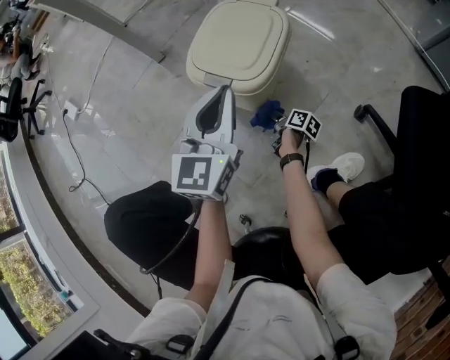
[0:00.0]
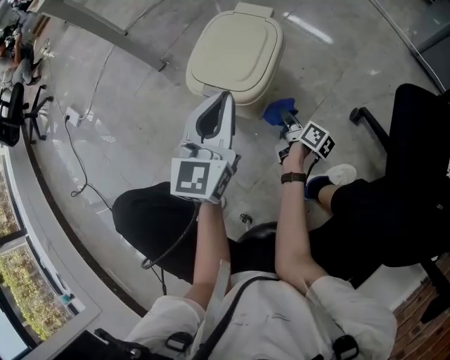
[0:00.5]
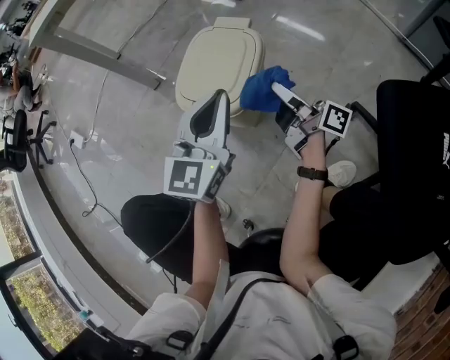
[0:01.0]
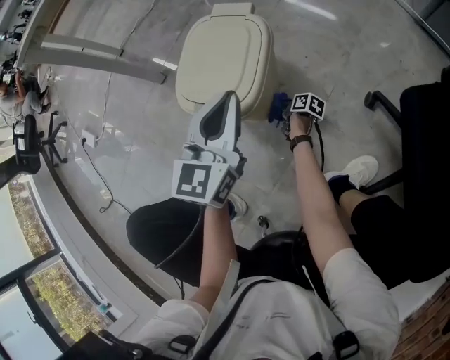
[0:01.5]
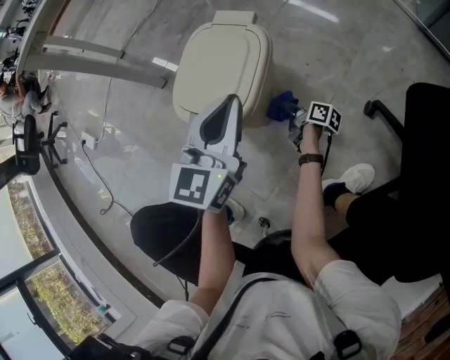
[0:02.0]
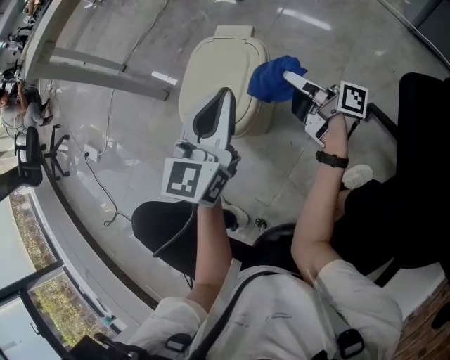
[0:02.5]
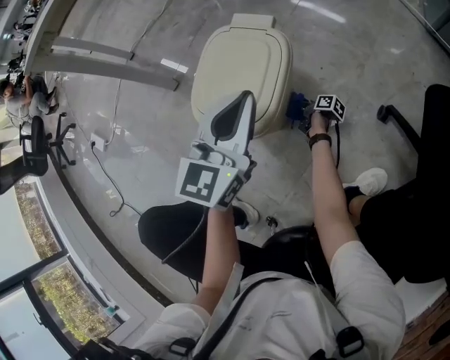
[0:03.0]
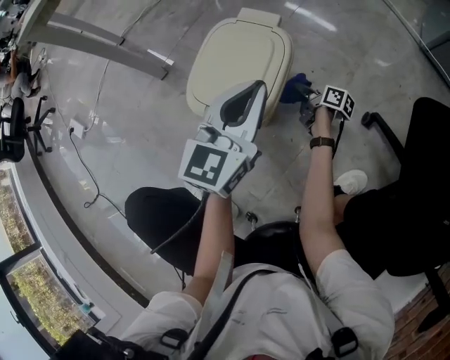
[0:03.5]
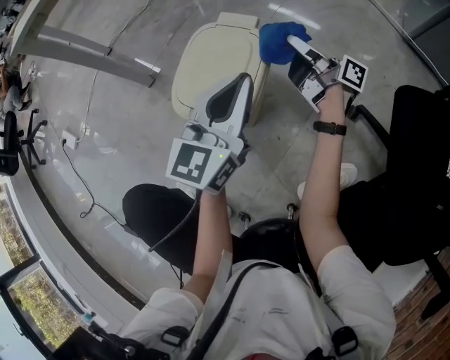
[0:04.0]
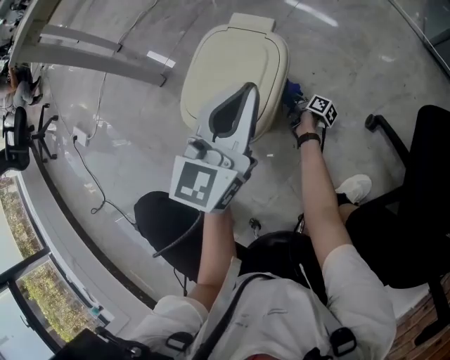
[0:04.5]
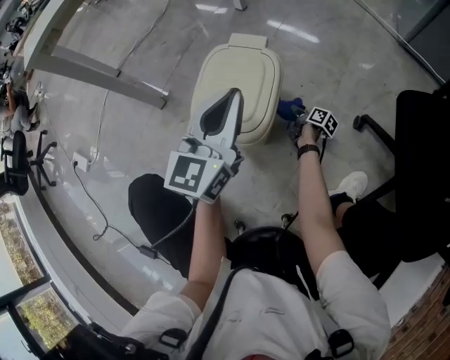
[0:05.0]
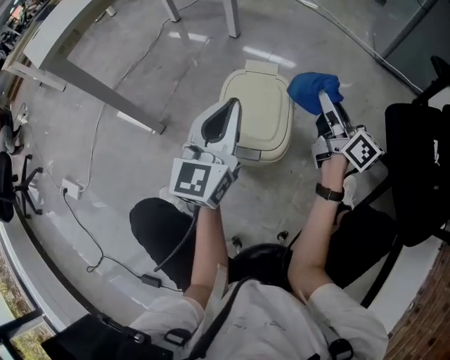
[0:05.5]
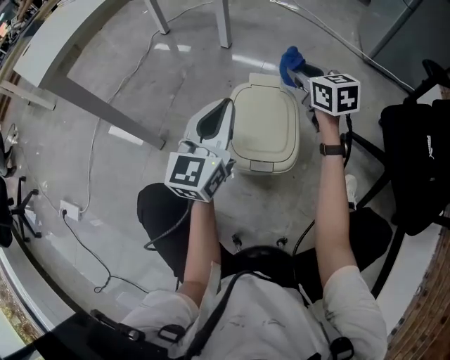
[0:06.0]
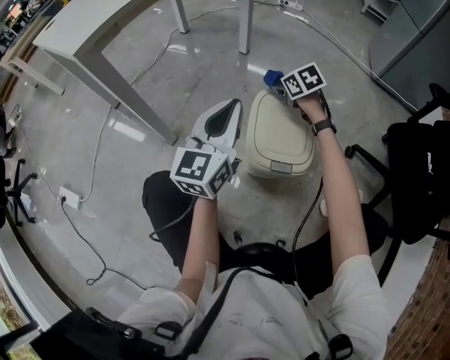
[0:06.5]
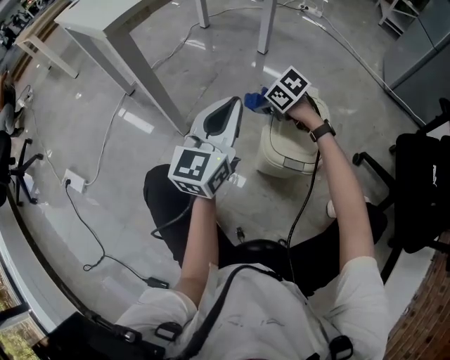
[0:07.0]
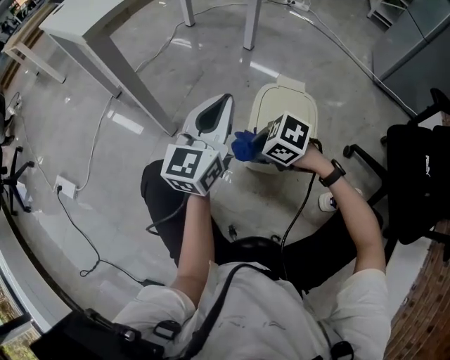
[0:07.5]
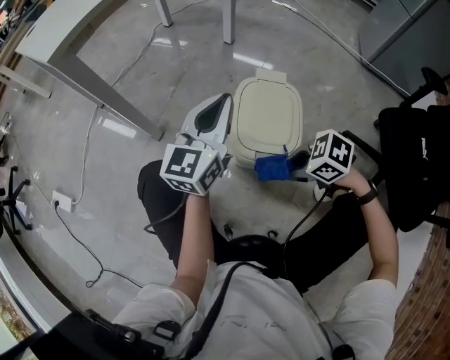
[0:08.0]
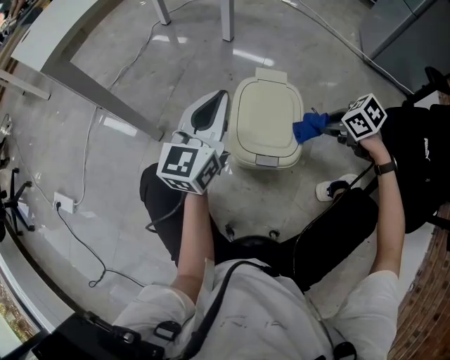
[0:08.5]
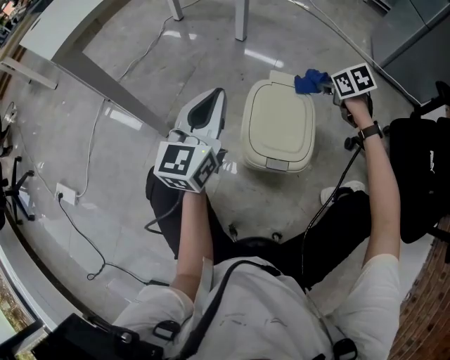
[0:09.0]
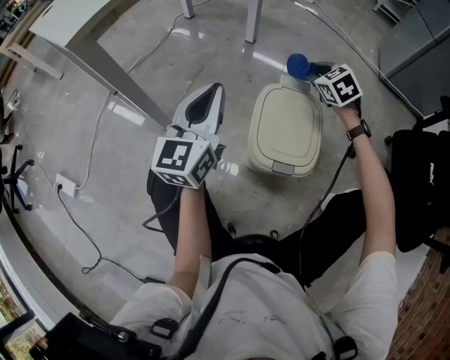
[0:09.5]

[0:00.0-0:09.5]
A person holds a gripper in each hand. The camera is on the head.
0:00.0 to 0:02.0: The left gripper heads to the right, covering some 5 cm. Meanwhile the right gripper goes up and down, approximately 40 cm each way, reversing 2 times.
0:02.0 to 0:04.0: The right gripper goes up and down, some 40 cm each way, reversing 2 times, and tilts its fingers about 40 degrees upward.
0:04.0 to 0:05.5: The left gripper moves to the left, some 10 cm. The right gripper moves backward, some 10 cm, goes downward and returns, roughly 35 cm each way, and rotates approximately 50 degrees.
0:05.5 to 0:07.5: The right gripper ends up some 35 cm from where it was, and tilts its fingers some 60 degrees downward. The left gripper ends up some 15 cm from where it was.
0:07.5 to 0:09.5: The right gripper shifts by some 35 cm, and turns by about 50 degrees.

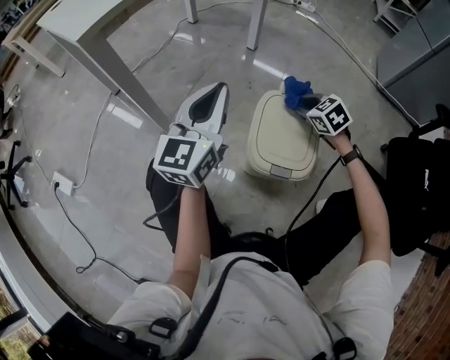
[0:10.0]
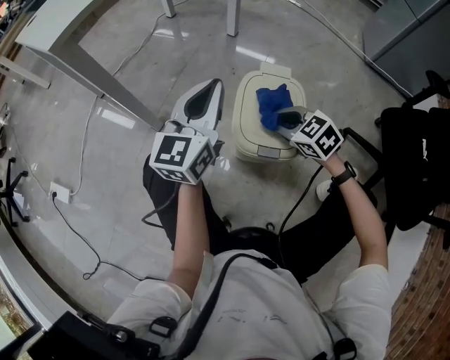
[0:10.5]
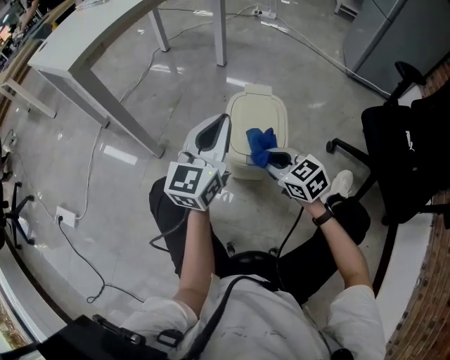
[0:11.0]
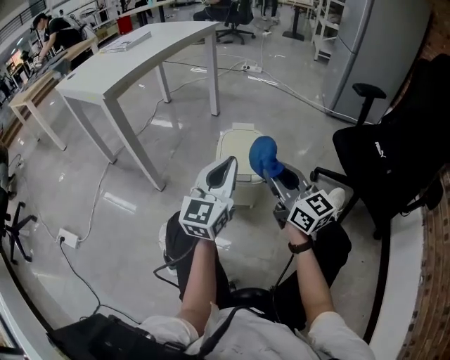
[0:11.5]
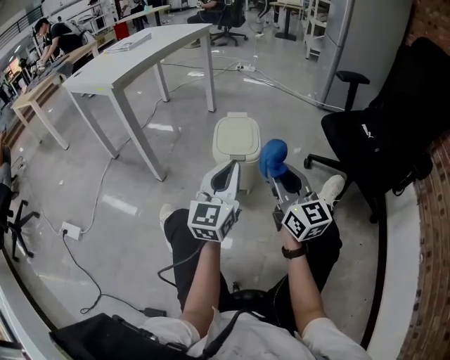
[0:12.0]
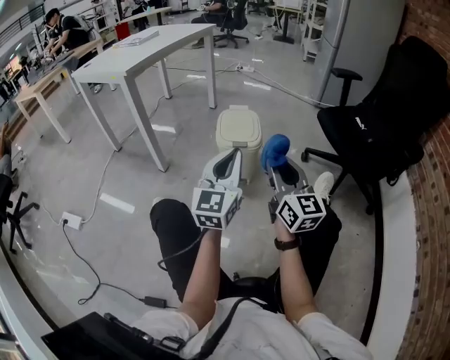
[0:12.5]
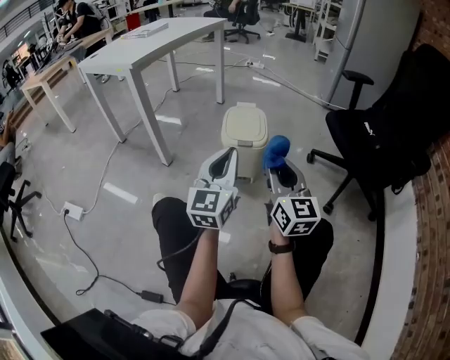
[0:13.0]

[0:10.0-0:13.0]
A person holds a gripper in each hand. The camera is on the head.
0:10.0 to 0:11.5: The right gripper shifts some 35 cm backward and upward, and angles its fingers upward, by about 60 degrees; the left gripper is displaced backward and to the right by about 25 cm.
0:11.5 to 0:13.0: The two grippers go some 15 cm backward. The right gripper turns by some 20 degrees.

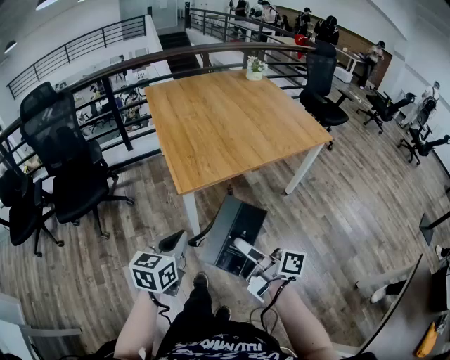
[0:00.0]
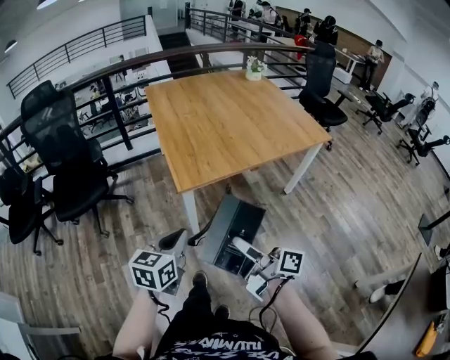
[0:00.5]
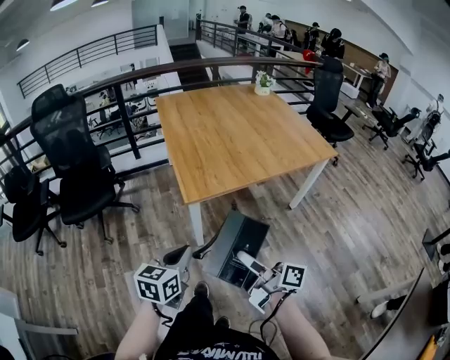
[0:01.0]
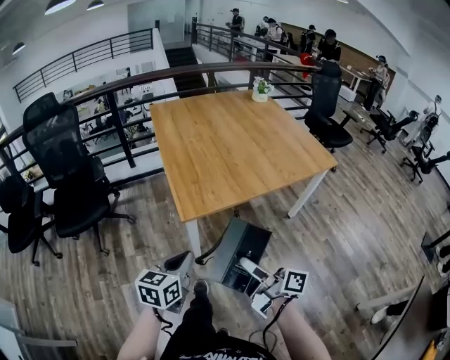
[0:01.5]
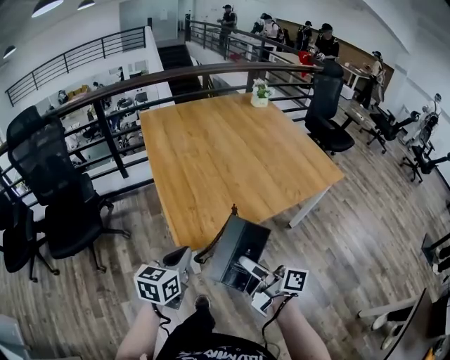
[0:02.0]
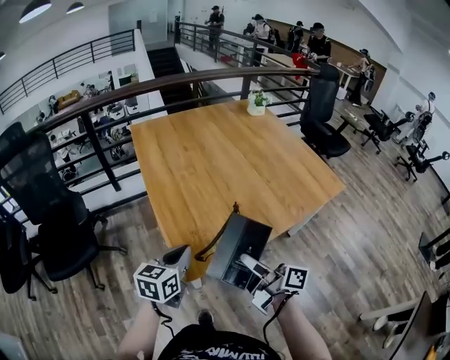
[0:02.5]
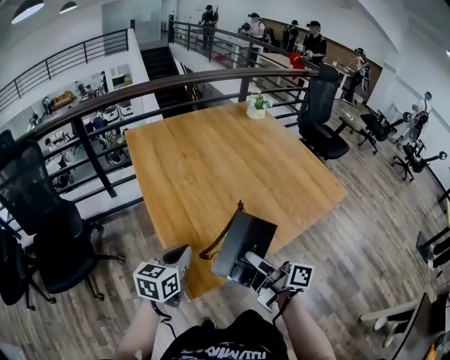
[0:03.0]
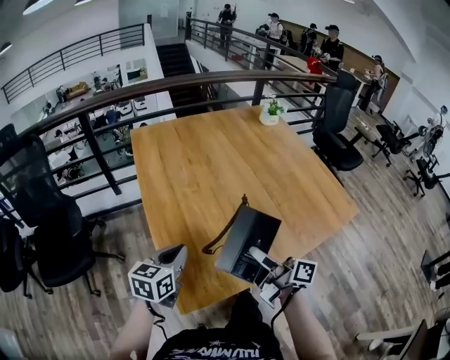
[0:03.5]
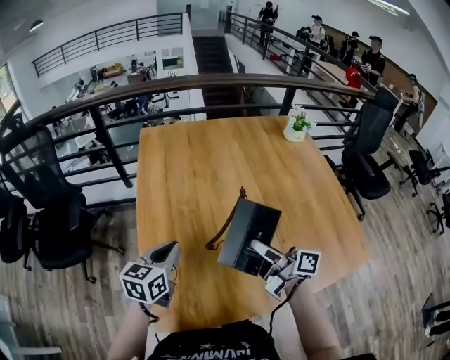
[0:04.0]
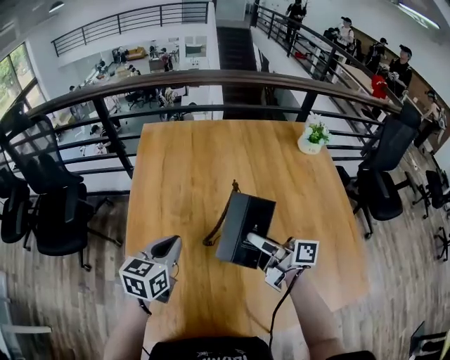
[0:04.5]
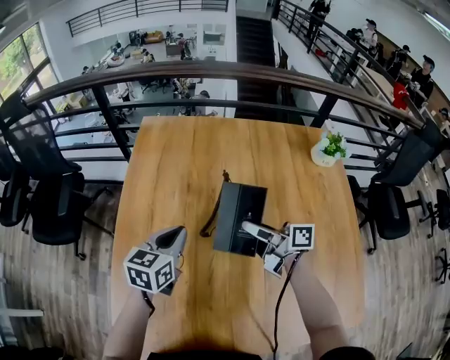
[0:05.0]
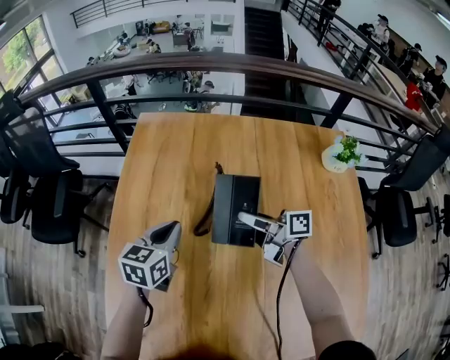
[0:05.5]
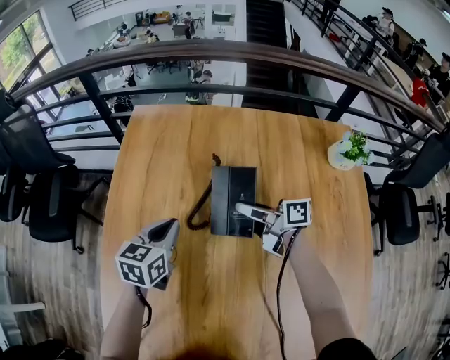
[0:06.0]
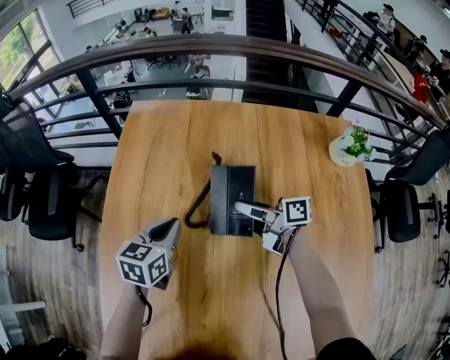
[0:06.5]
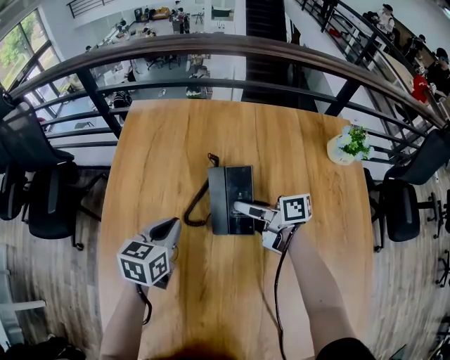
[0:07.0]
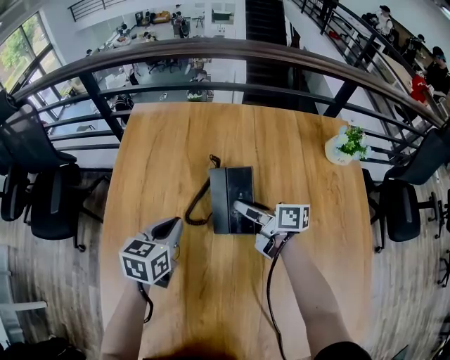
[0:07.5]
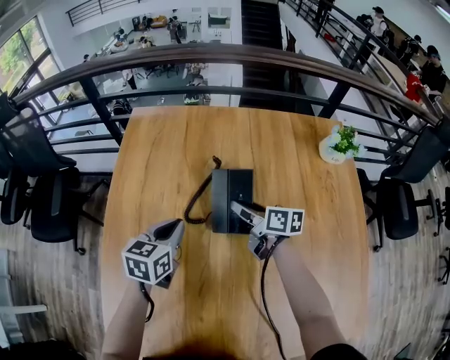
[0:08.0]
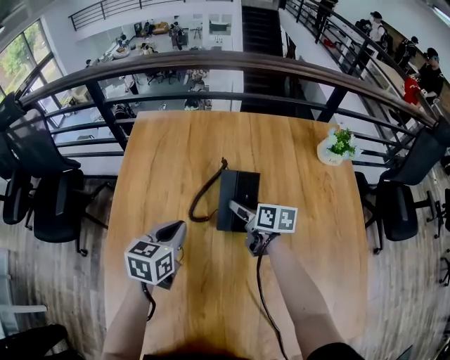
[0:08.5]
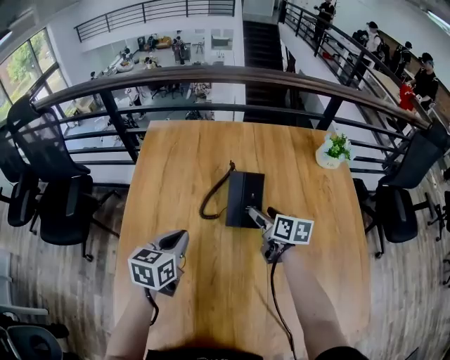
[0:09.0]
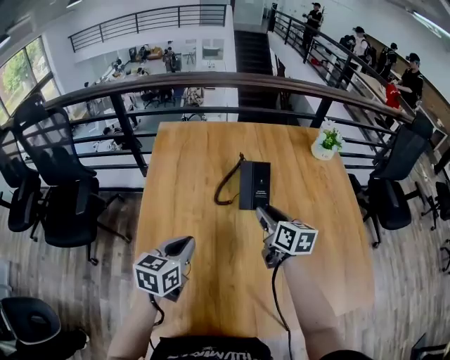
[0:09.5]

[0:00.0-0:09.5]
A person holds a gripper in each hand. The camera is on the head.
0:00.0 to 0:02.0: The two grippers go roughly 20 cm forward.
0:02.0 to 0:04.0: Both grippers move forward, approximately 40 cm.
0:04.0 to 0:05.5: The left gripper heads forward and to the right, covering some 25 cm. The right gripper goes some 30 cm forward, and swivels approximately 30 degrees.
0:05.5 to 0:07.5: The right gripper changes place by approximately 5 cm.
0:07.5 to 0:09.5: The left gripper heads backward, to the left and upward, covering approximately 20 cm, while the right gripper heads backward and upward, covering approximately 20 cm, swivels some 40 degrees, and opens and closes again.

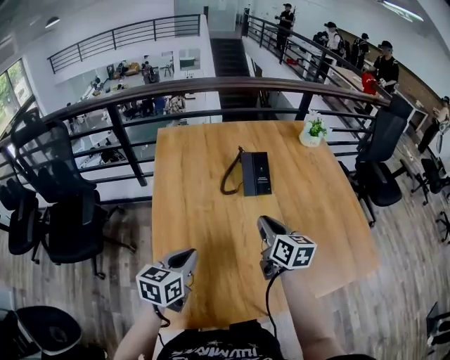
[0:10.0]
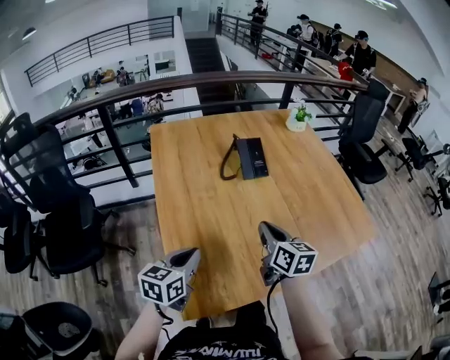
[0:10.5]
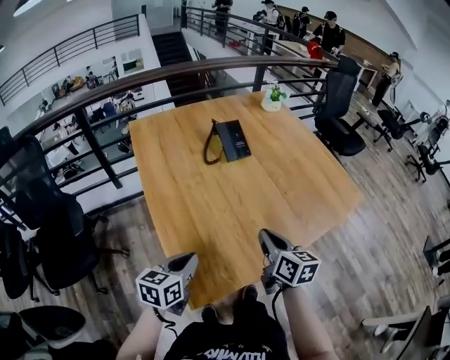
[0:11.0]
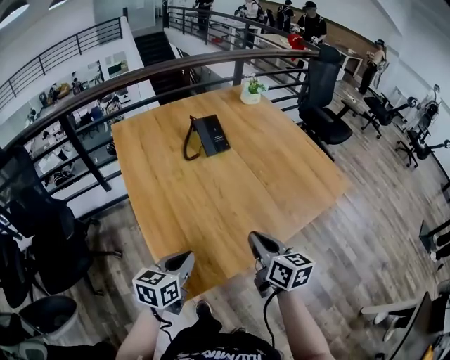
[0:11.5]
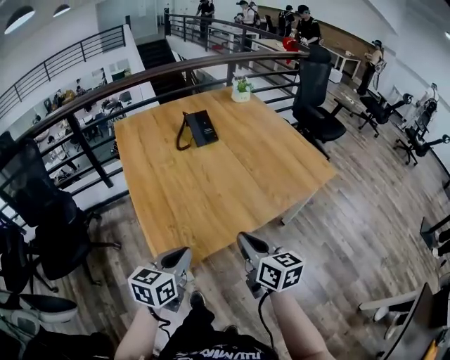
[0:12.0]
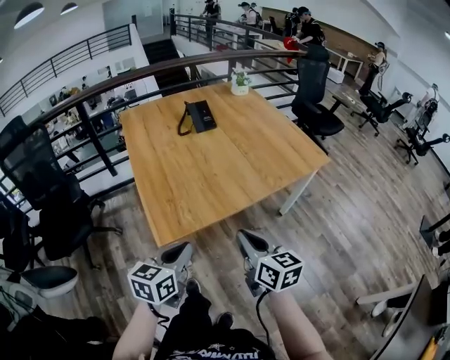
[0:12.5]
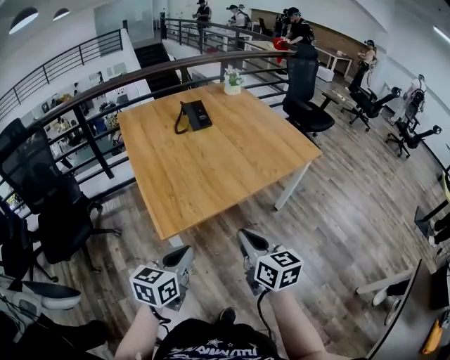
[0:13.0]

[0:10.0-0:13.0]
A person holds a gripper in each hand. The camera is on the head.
0:10.0 to 0:11.5: The right gripper travels backward by some 25 cm. Meanwhile the left gripper travels backward by roughly 15 cm, and changes its angle by roughly 20 degrees.
0:11.5 to 0:13.0: Both grippers move backward, approximately 25 cm.

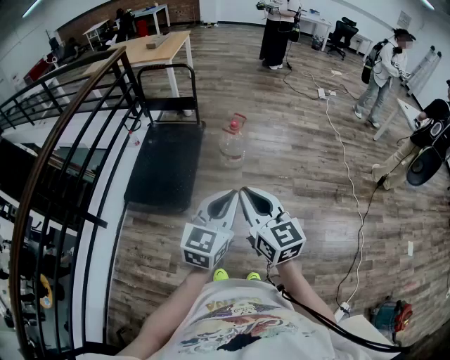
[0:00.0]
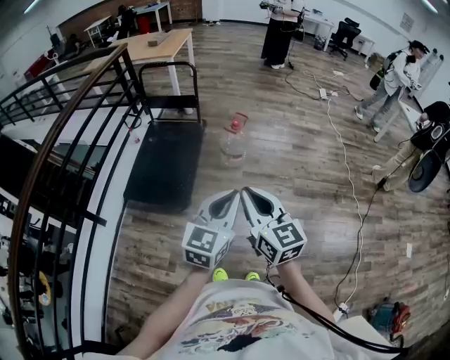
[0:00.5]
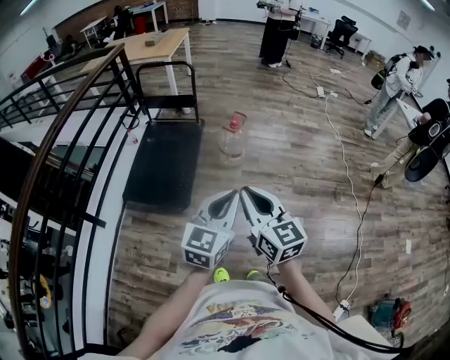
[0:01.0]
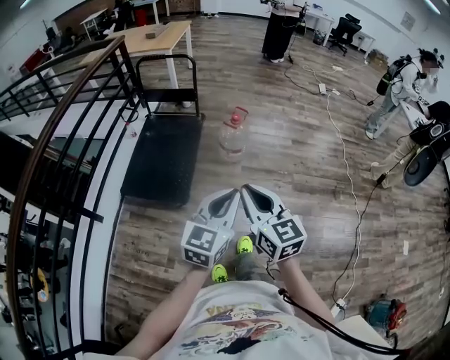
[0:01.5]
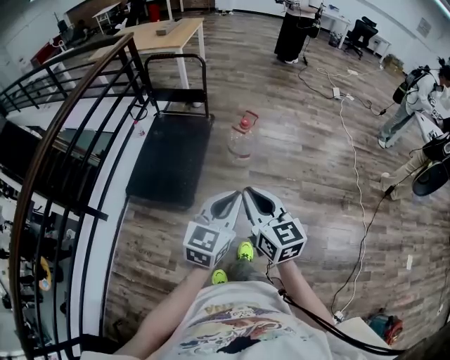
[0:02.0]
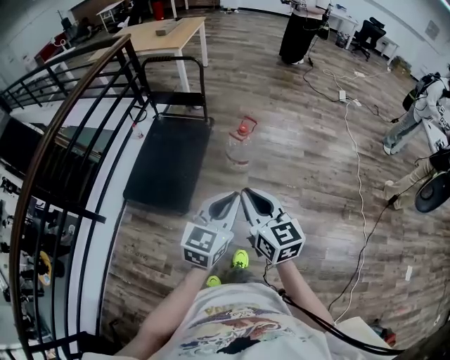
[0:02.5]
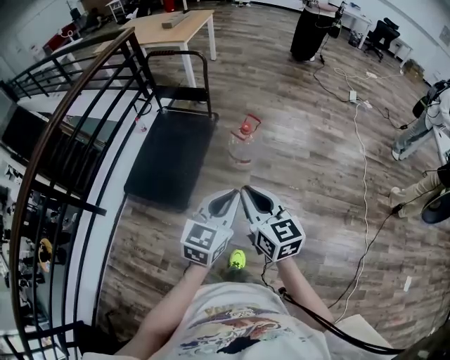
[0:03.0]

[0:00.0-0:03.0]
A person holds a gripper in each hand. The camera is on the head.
0:00.0 to 0:01.5: The grippers move only a little.
0:01.5 to 0:03.0: Both grippers travel together forward and to the right, about 20 cm.
